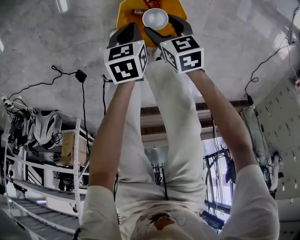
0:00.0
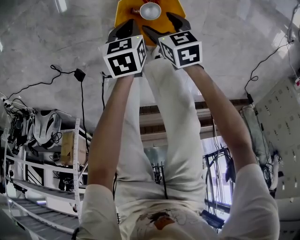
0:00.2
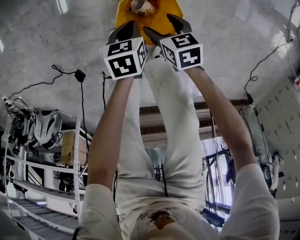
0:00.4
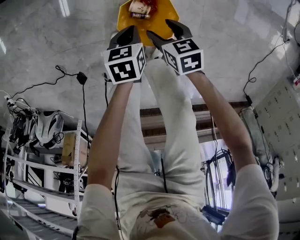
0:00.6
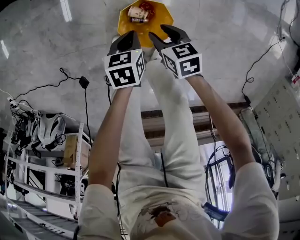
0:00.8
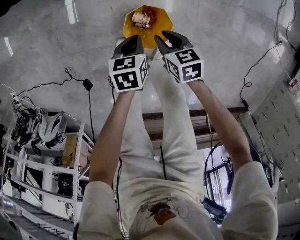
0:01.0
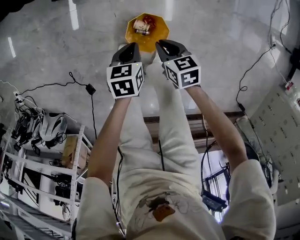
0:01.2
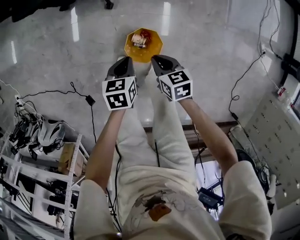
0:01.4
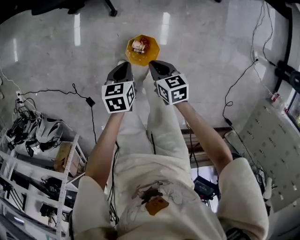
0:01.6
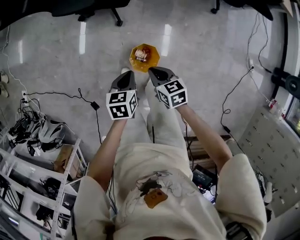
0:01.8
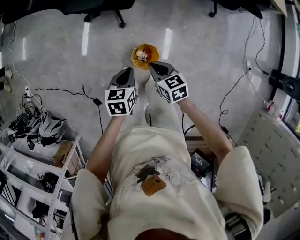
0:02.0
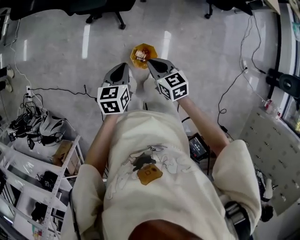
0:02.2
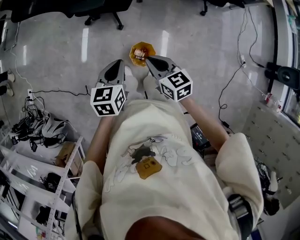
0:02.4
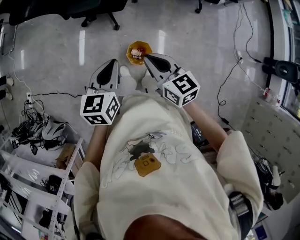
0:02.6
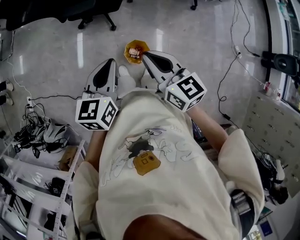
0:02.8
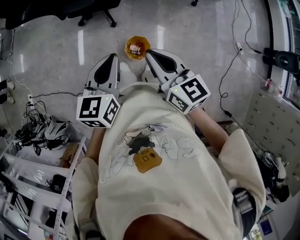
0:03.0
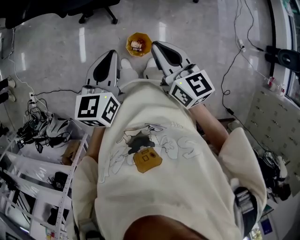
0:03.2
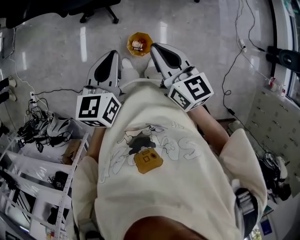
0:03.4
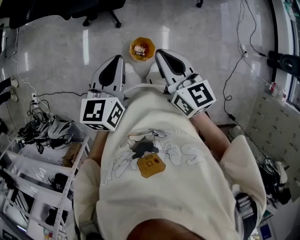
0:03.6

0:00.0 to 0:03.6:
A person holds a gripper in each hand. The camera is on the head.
0:00.0 to 0:01.8: Both grippers move upward, some 50 cm. The right gripper closes up.
0:01.8 to 0:03.6: Both grippers travel together upward, about 35 cm. The left gripper changes its angle by approximately 30 degrees; the right gripper changes its angle by approximately 30 degrees.

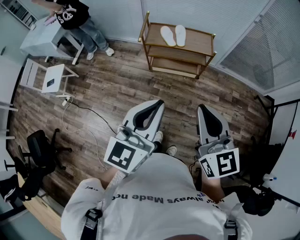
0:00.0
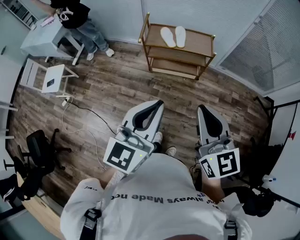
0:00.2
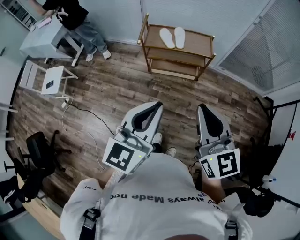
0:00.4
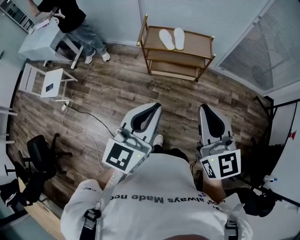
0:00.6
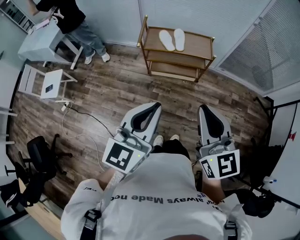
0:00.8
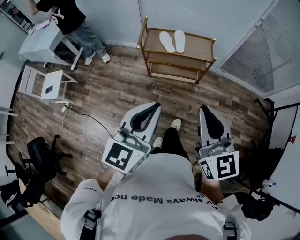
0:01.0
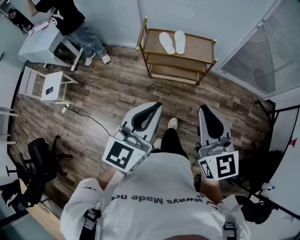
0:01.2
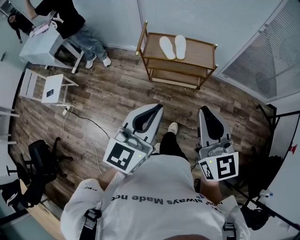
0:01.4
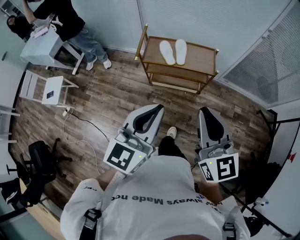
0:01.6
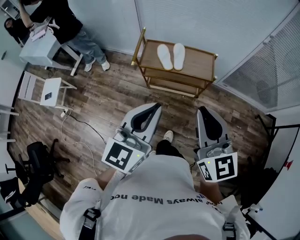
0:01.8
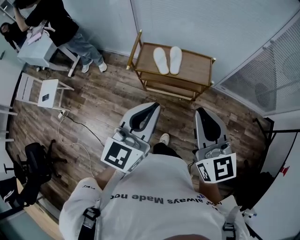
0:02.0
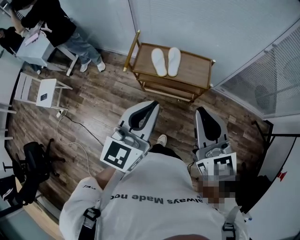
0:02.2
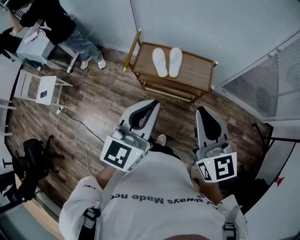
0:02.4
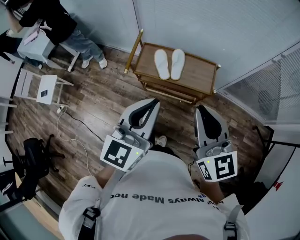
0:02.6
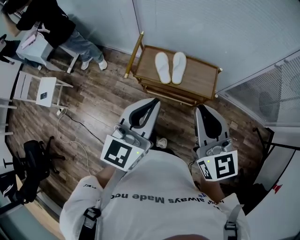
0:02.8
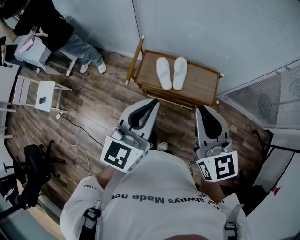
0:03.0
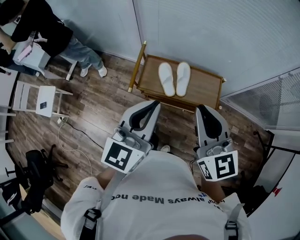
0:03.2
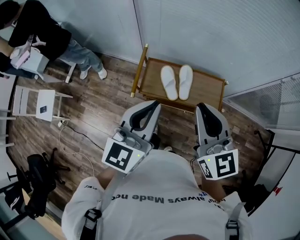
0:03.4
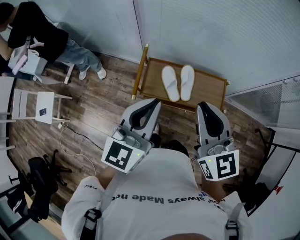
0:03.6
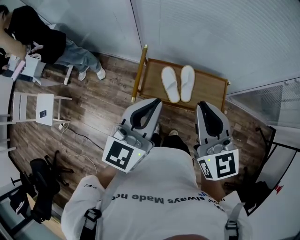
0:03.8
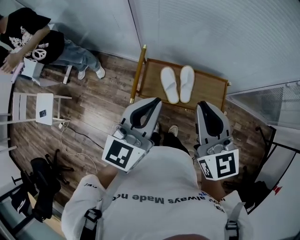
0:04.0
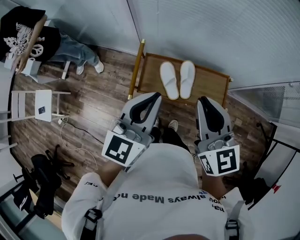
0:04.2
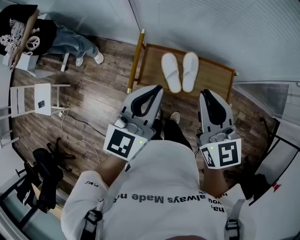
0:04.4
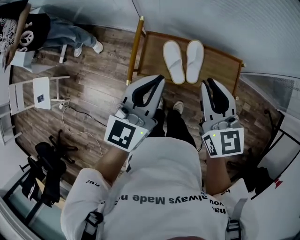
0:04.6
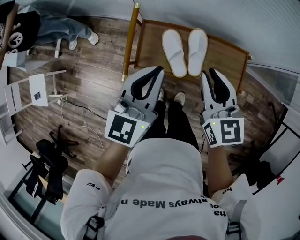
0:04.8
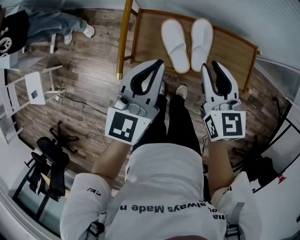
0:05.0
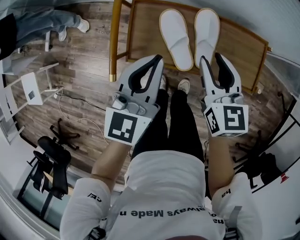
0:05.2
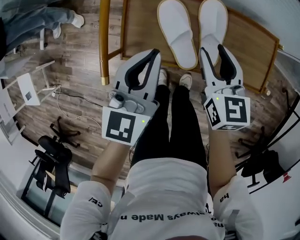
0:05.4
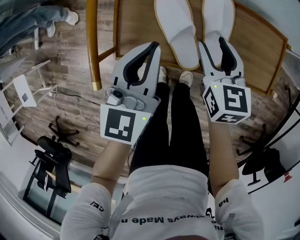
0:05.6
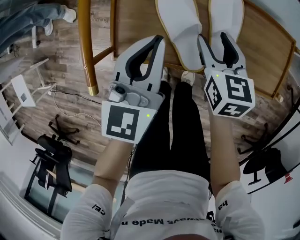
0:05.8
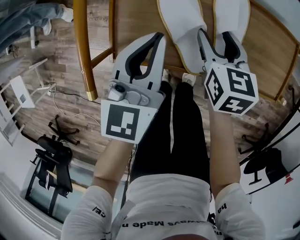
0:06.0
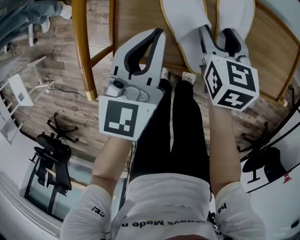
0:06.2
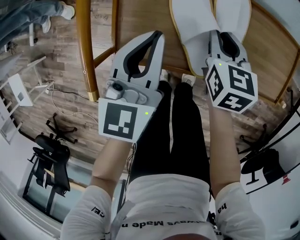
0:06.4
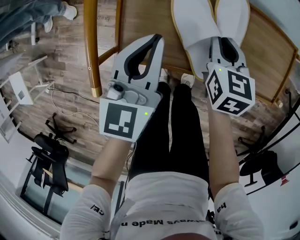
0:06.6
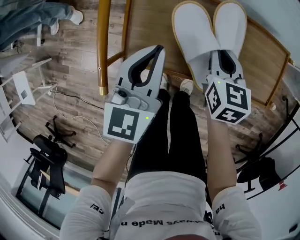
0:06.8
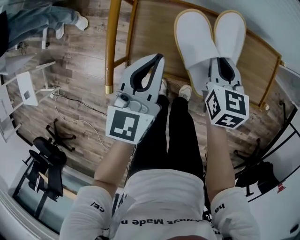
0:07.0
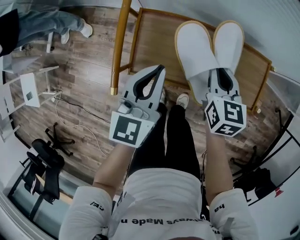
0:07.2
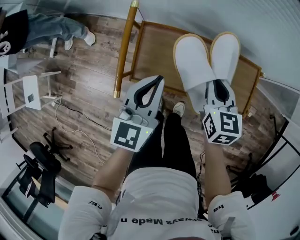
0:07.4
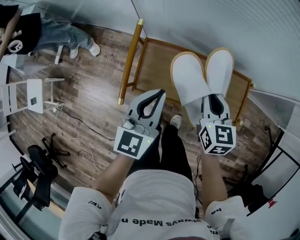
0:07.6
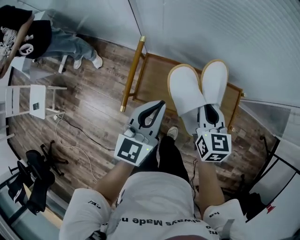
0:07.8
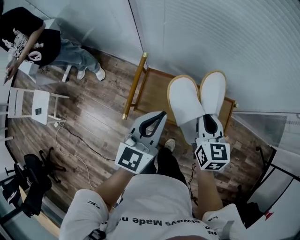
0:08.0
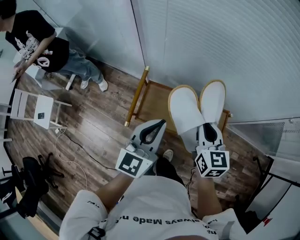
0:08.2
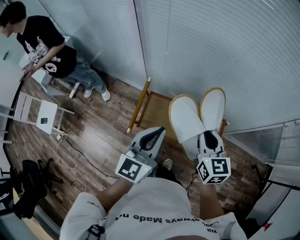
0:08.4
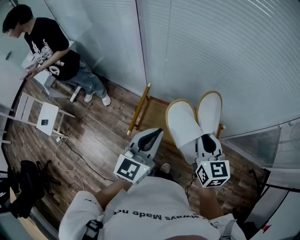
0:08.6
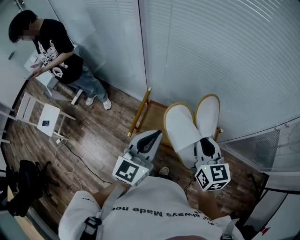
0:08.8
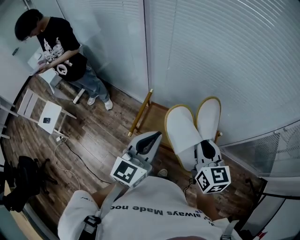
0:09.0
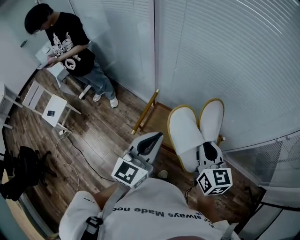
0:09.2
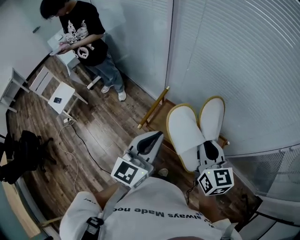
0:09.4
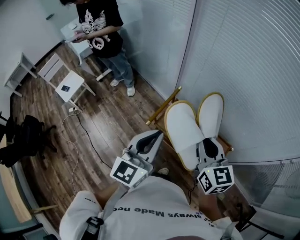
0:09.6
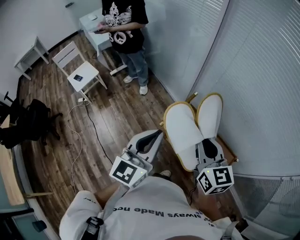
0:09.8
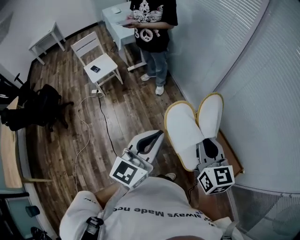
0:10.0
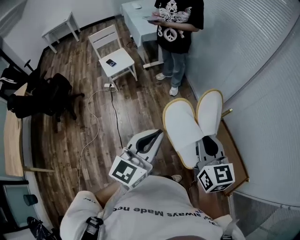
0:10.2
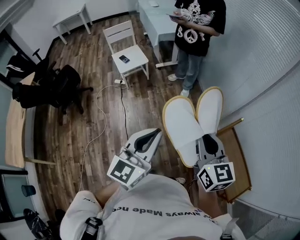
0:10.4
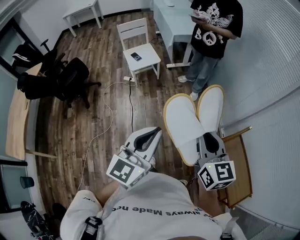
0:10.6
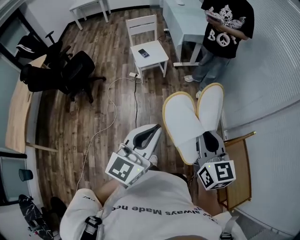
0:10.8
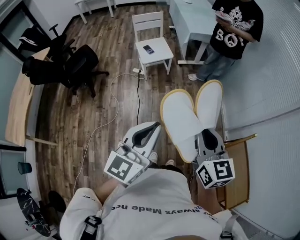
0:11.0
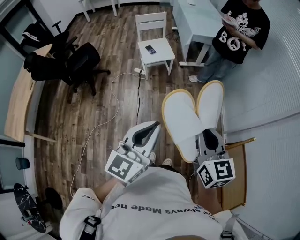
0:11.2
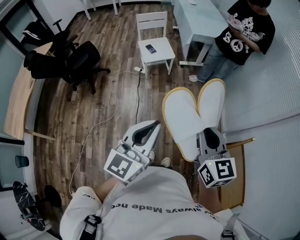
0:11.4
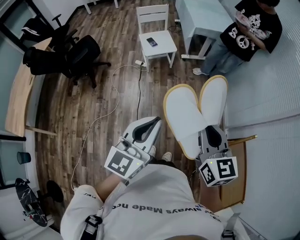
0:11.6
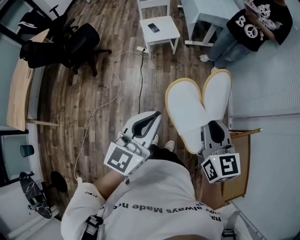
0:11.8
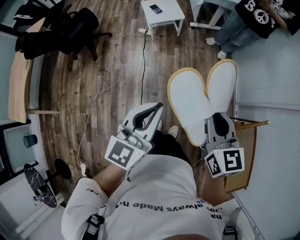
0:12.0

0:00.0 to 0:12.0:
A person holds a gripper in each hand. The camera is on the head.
0:00.0 to 0:01.6: The two grippers go roughly 20 cm forward.
0:01.6 to 0:03.0: The two grippers go some 30 cm forward.
0:03.0 to 0:04.4: Both grippers travel together forward and downward, approximately 20 cm.
0:04.4 to 0:06.0: Both grippers move downward, approximately 40 cm. The right gripper points its fingers roughly 30 degrees further downward, and opens up.
0:06.0 to 0:07.6: Both grippers move upward, approximately 20 cm. The right gripper closes up.
0:07.6 to 0:09.0: The grippers both shift upward by roughly 30 cm.
0:09.0 to 0:10.4: Both grippers are carried roughly 50 cm. The right gripper rotates about 50 degrees, while the left gripper turns by roughly 40 degrees.
0:10.4 to 0:12.0: The left gripper moves to the left, downward and forward, roughly 15 cm; the right gripper moves to the left, forward and downward, about 20 cm.

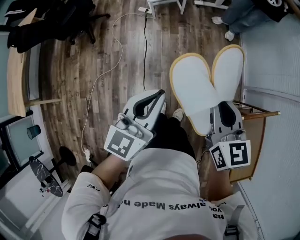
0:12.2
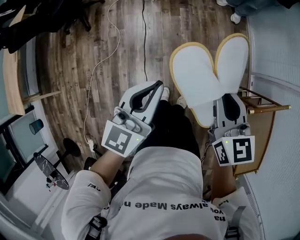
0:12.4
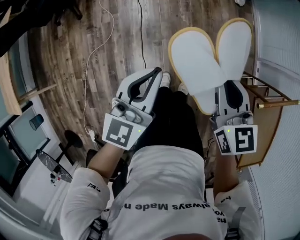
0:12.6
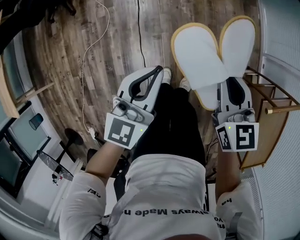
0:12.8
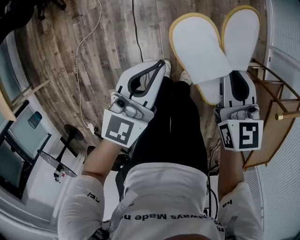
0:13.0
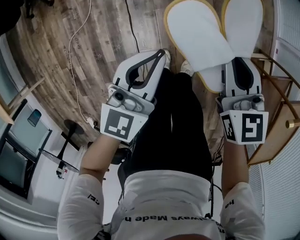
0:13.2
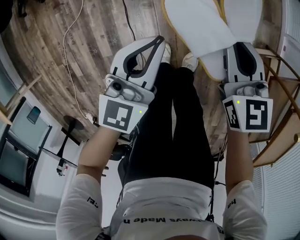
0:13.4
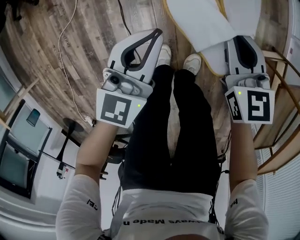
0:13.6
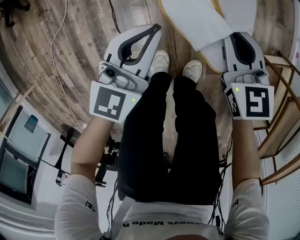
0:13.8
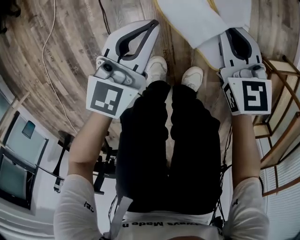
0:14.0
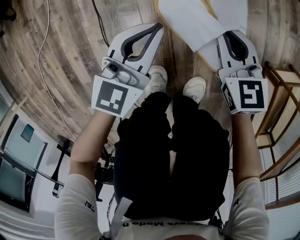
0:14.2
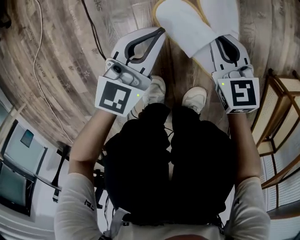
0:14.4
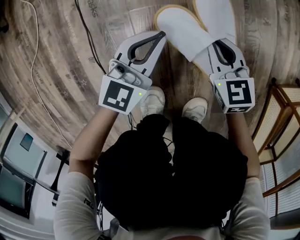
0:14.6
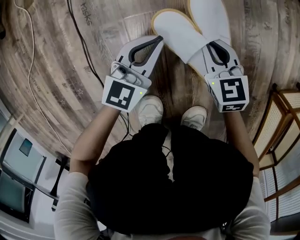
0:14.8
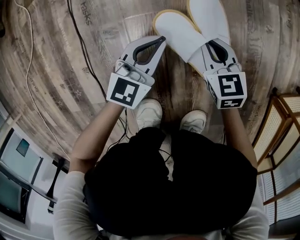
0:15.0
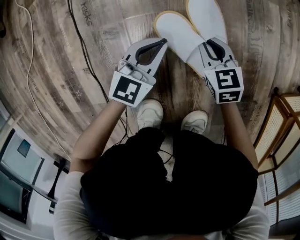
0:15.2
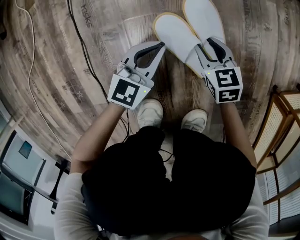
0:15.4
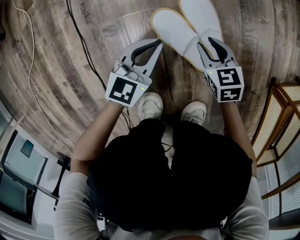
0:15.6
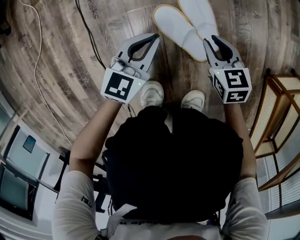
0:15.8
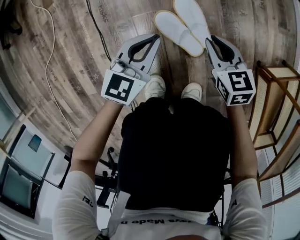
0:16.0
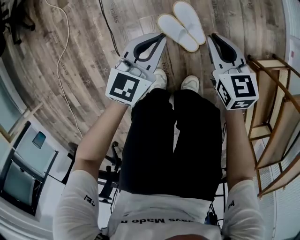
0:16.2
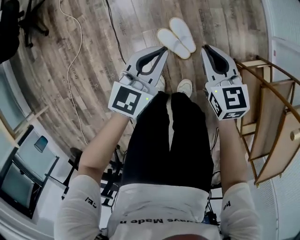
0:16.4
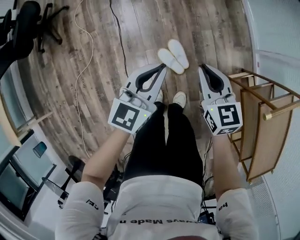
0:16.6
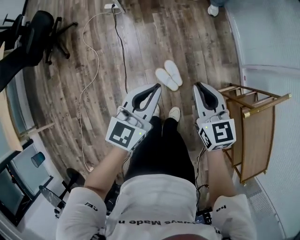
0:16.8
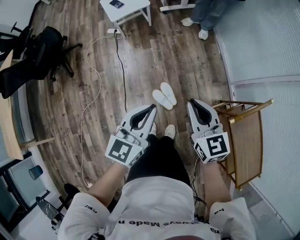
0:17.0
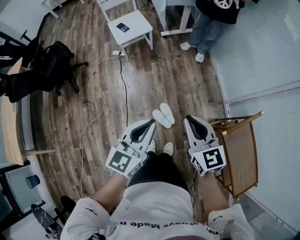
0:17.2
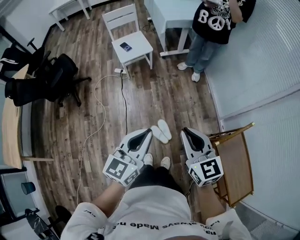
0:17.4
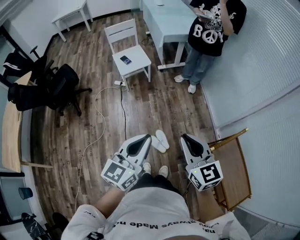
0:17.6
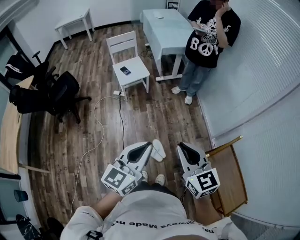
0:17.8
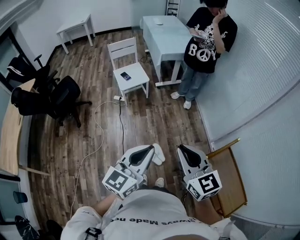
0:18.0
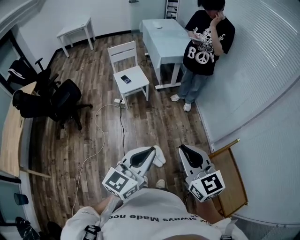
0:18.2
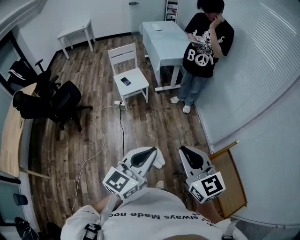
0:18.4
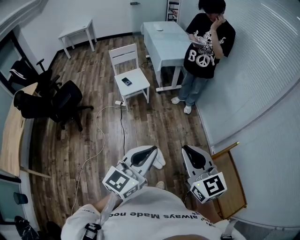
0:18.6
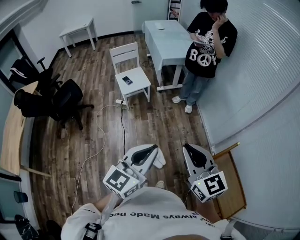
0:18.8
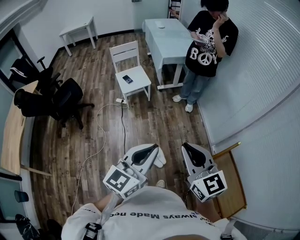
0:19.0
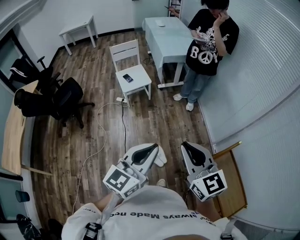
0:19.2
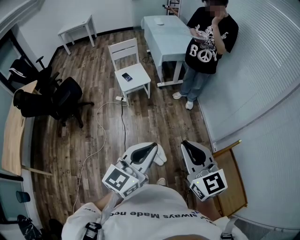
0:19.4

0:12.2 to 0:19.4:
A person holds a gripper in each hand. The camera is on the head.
0:12.2 to 0:13.6: Both grippers move downward, some 50 cm.
0:13.6 to 0:15.0: Both grippers move downward, some 50 cm.
0:15.0 to 0:16.6: Both grippers travel together upward, roughly 70 cm. The right gripper opens, then closes again.
0:16.6 to 0:18.0: Both grippers travel together upward, approximately 50 cm. The right gripper rotates some 20 degrees.
0:18.0 to 0:19.4: The right gripper ends up approximately 5 cm from where it was.

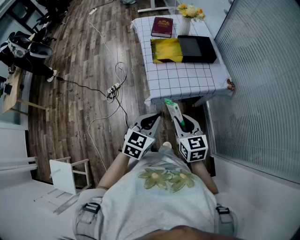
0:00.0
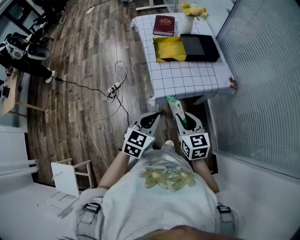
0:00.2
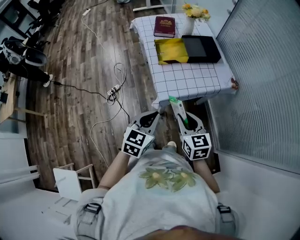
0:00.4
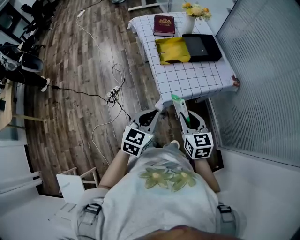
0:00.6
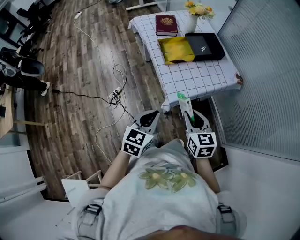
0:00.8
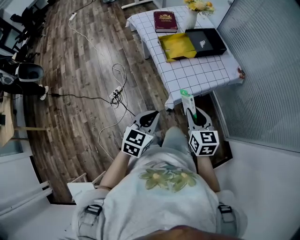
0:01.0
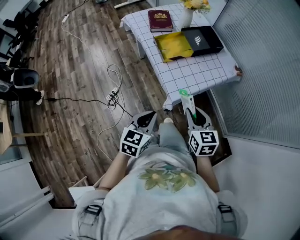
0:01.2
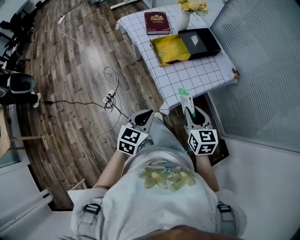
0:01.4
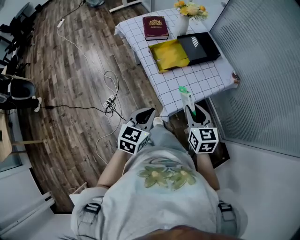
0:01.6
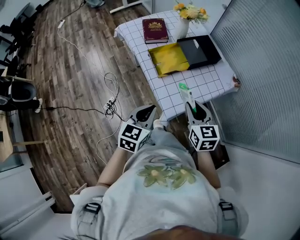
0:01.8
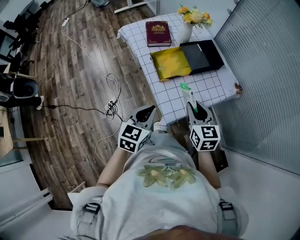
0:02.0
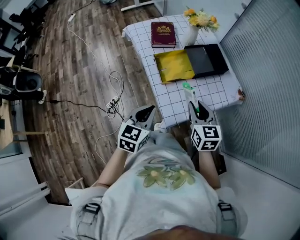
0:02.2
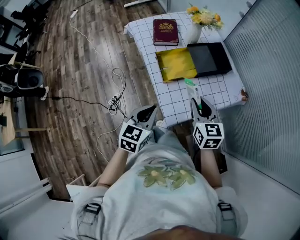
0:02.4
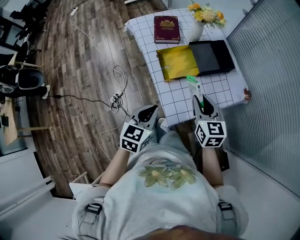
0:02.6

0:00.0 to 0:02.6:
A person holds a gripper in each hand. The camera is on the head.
0:00.0 to 0:01.2: The left gripper travels to the left by some 20 cm. The right gripper shifts some 15 cm to the left and forward, and turns by roughly 20 degrees.
0:01.2 to 0:02.6: Both grippers move forward, about 20 cm.
